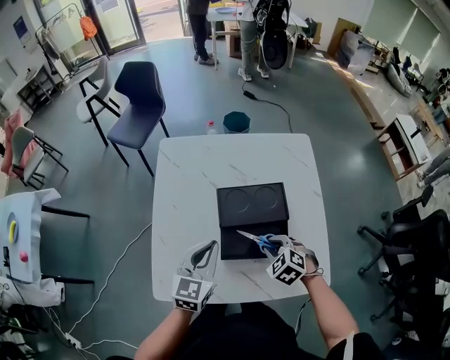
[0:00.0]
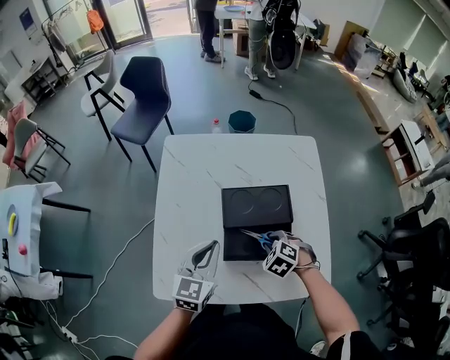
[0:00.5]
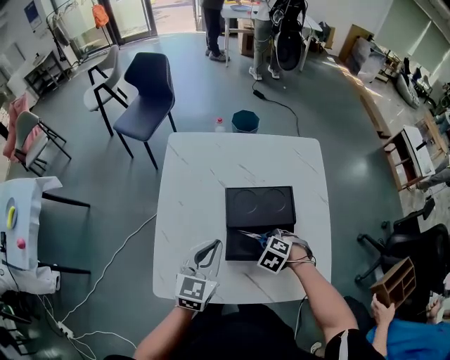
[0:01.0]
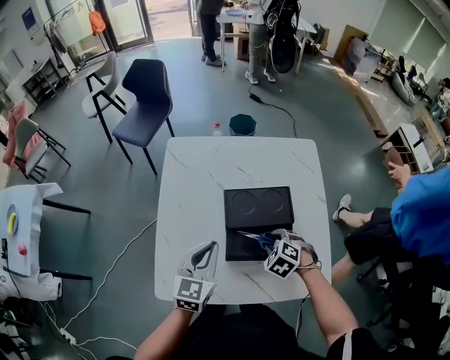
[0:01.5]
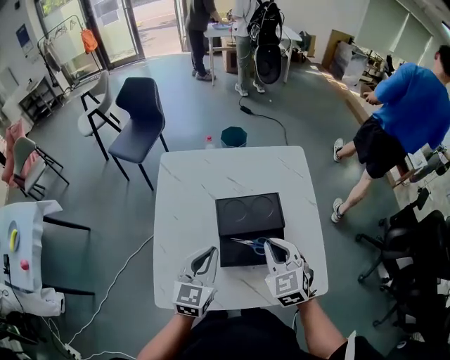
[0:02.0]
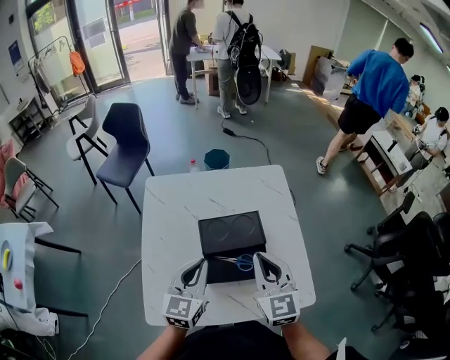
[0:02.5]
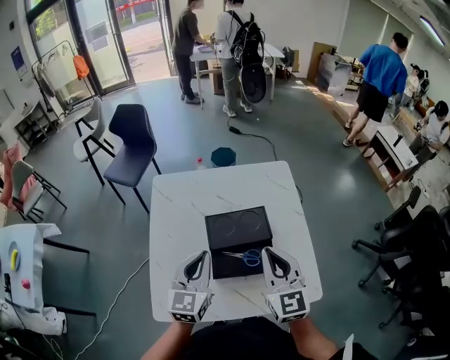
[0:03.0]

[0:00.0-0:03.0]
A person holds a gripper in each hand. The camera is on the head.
0:01.5 to 0:03.0: The left gripper heads upward, covering some 10 cm, while the right gripper shifts approximately 25 cm upward, angles its fingers upward, by some 60 degrees, and closes.

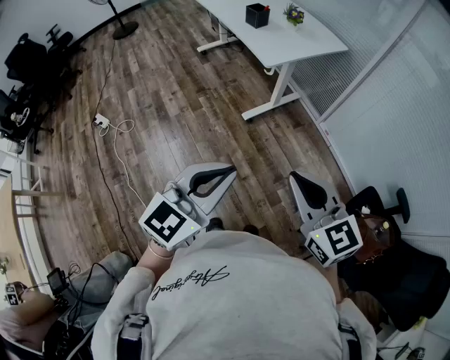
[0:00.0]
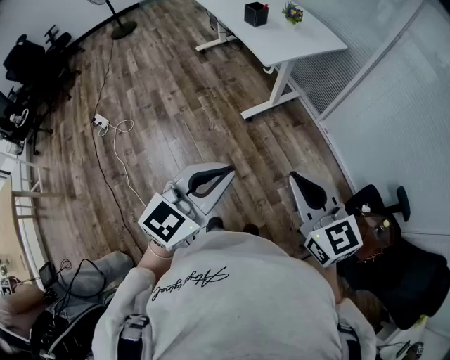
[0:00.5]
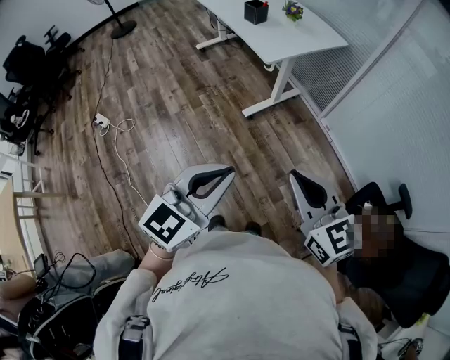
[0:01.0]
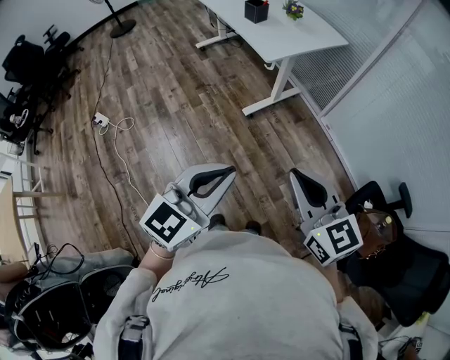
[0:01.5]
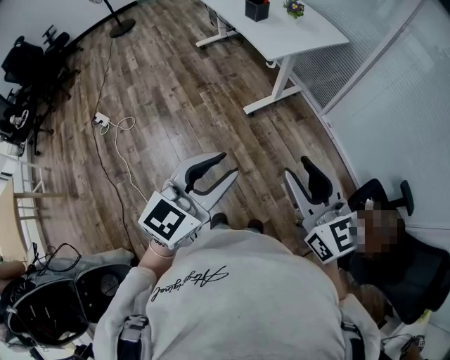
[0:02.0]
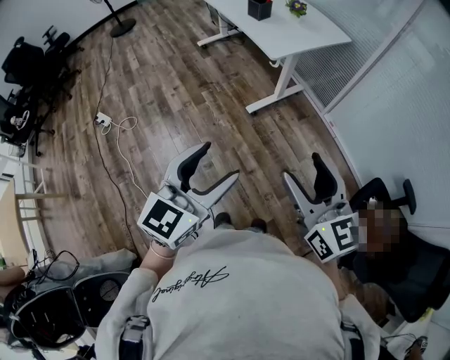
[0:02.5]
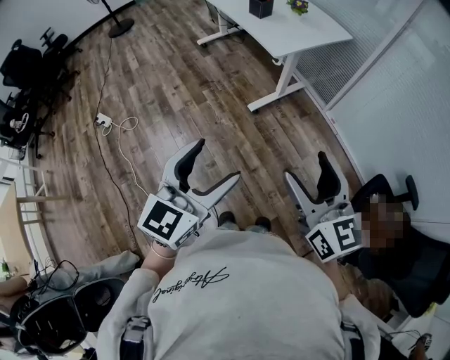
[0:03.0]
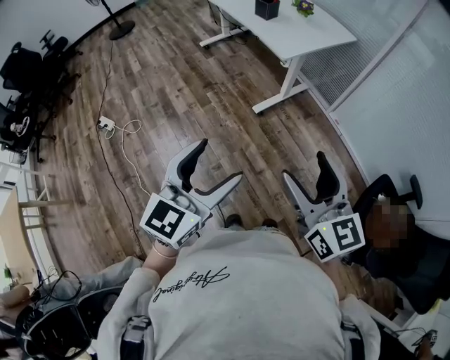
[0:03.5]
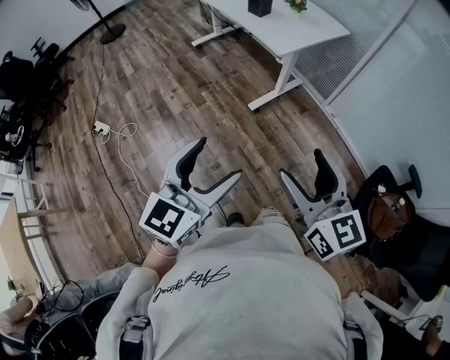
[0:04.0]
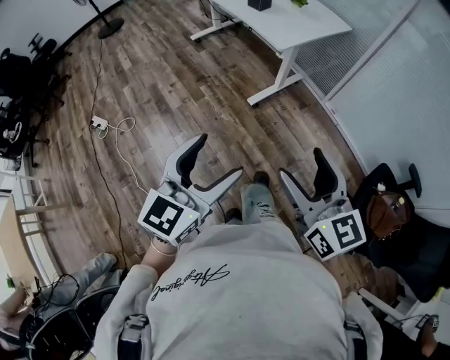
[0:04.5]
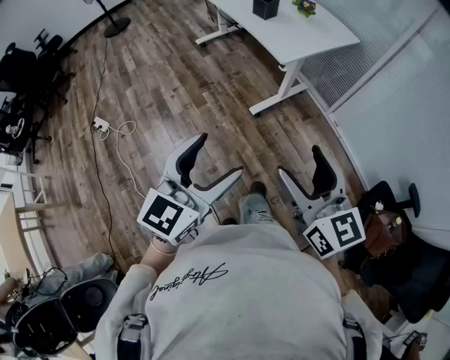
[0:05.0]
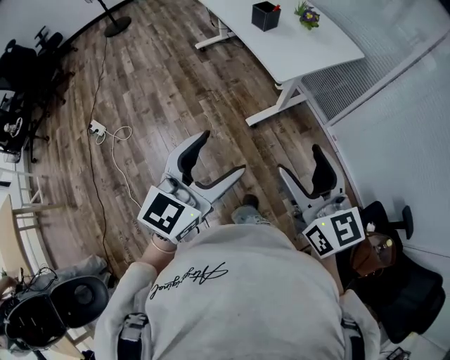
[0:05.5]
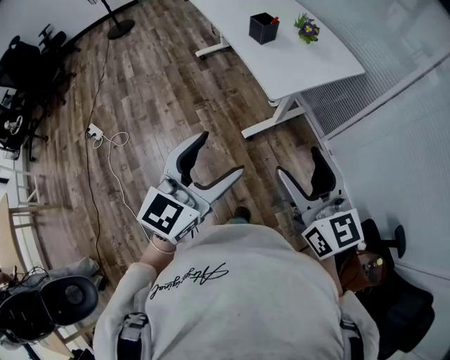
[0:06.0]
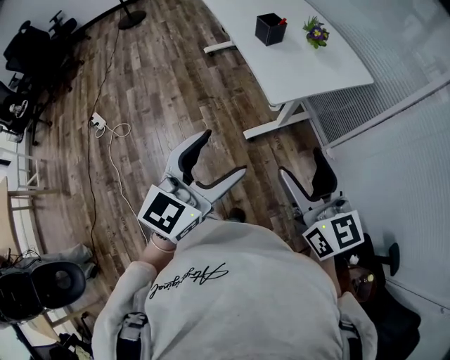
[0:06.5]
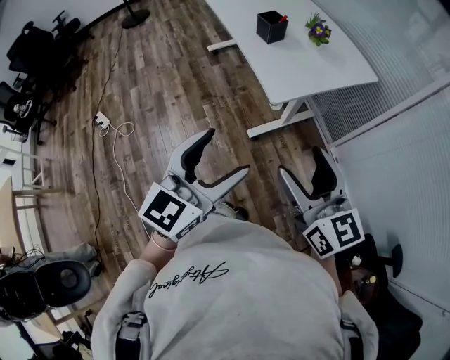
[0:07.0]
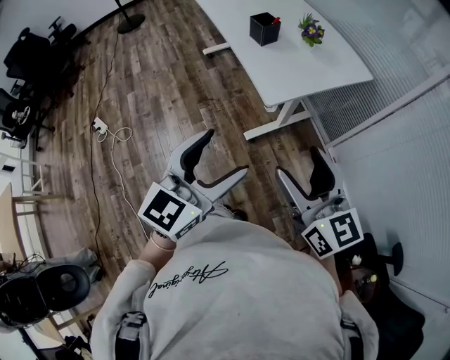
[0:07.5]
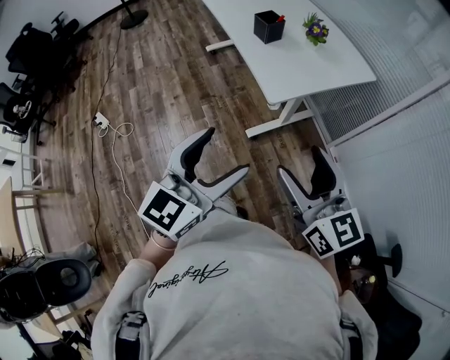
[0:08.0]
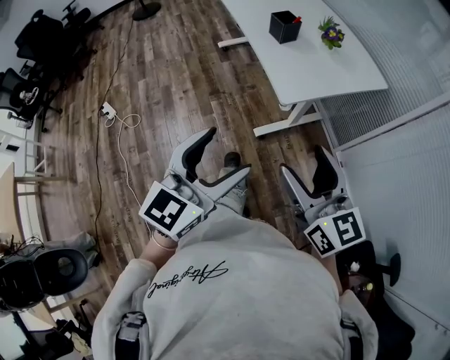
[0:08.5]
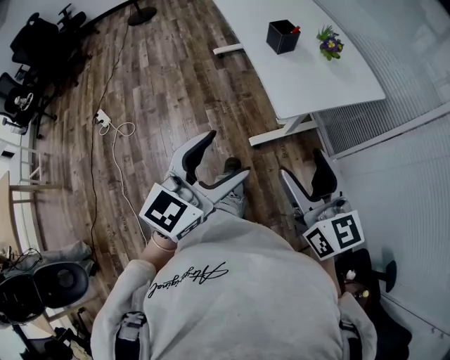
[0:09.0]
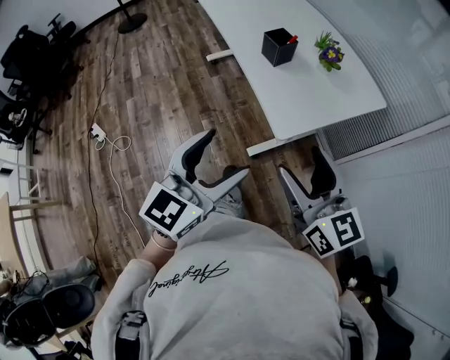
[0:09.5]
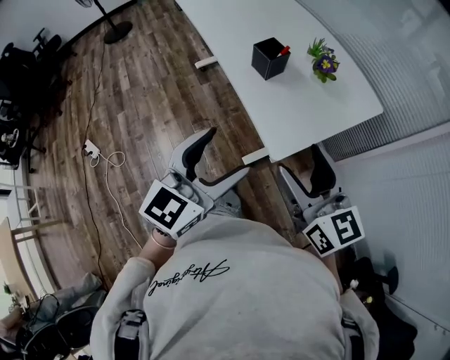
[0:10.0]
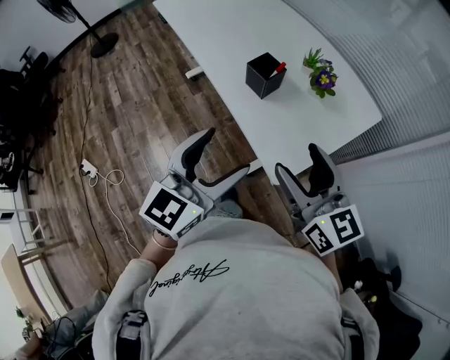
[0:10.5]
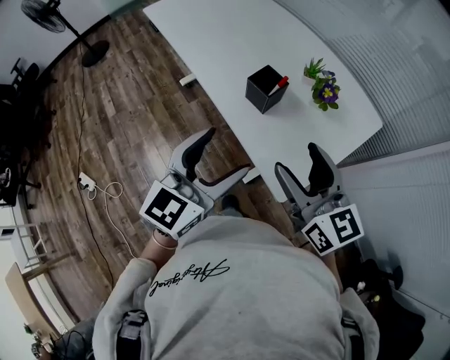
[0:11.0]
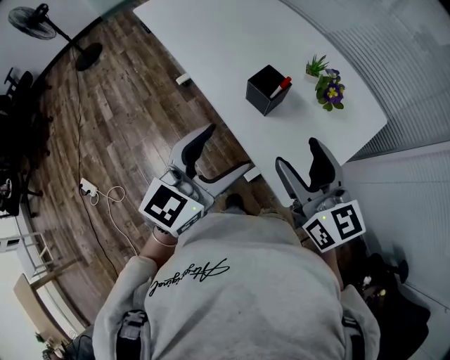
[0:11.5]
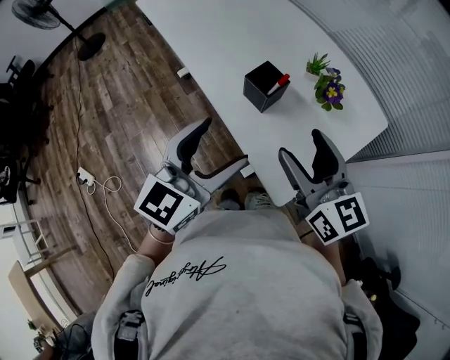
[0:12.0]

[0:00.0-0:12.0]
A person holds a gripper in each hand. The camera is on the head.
0:00.0 to 0:02.0: The right gripper opens its fingers.
0:02.0 to 0:04.0: The grippers both shift to the left by approximately 10 cm. The left gripper opens up, while the right gripper opens its fingers.
0:04.0 to 0:06.0: Both grippers travel together forward, approximately 25 cm.
0:06.0 to 0:08.0: The right gripper shifts by approximately 5 cm, while the left gripper ends up approximately 5 cm from where it was.
0:08.0 to 0:10.0: The grippers both shift forward by approximately 20 cm.
0:10.0 to 0:12.0: The grippers both shift forward by about 20 cm.

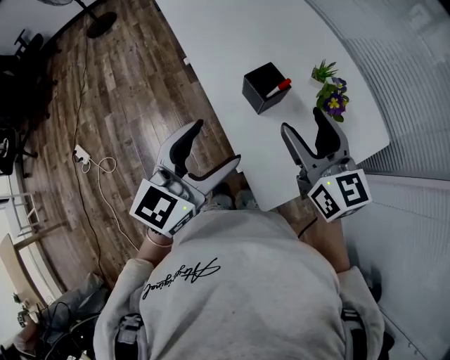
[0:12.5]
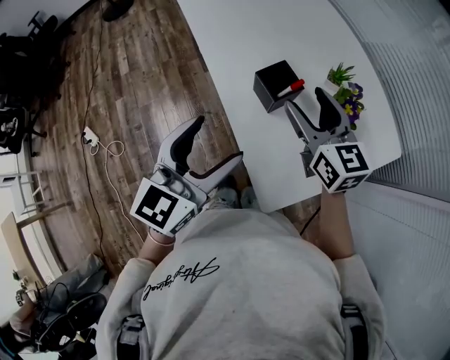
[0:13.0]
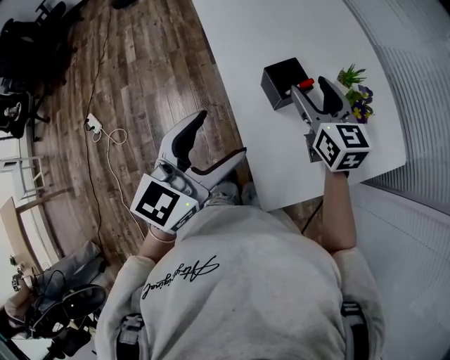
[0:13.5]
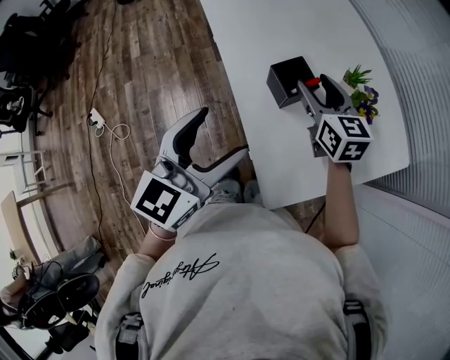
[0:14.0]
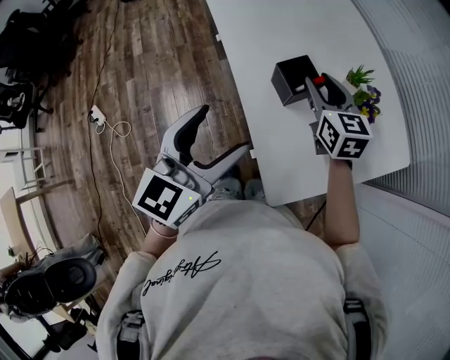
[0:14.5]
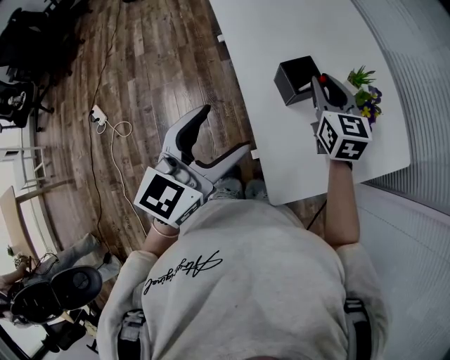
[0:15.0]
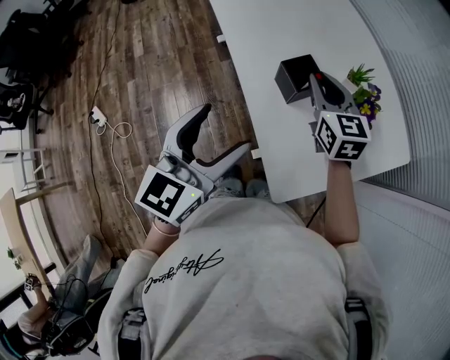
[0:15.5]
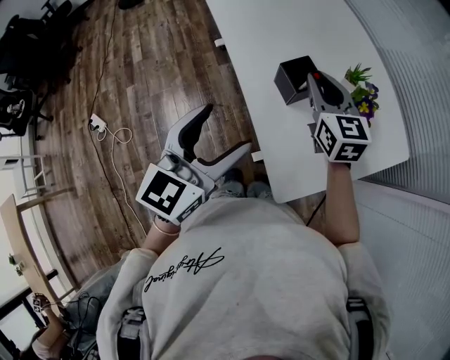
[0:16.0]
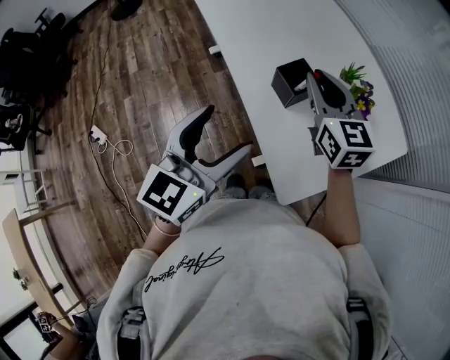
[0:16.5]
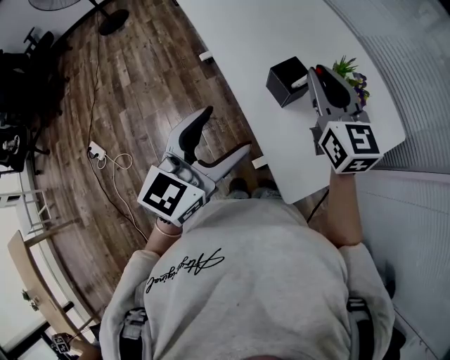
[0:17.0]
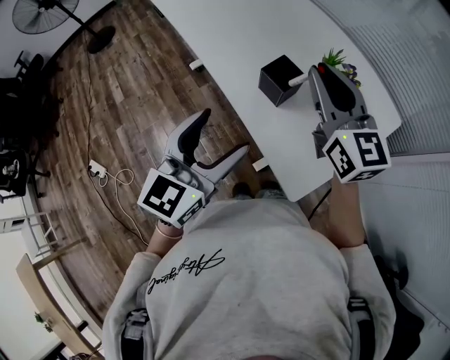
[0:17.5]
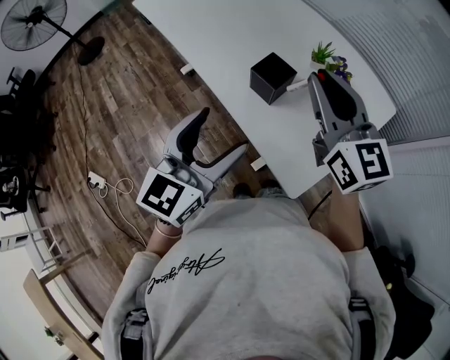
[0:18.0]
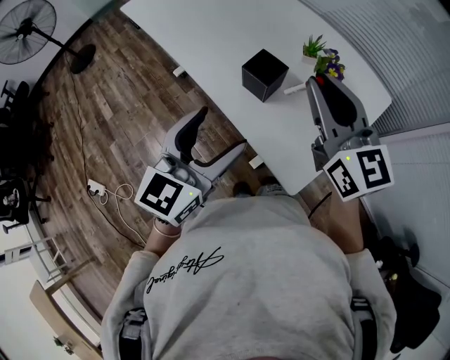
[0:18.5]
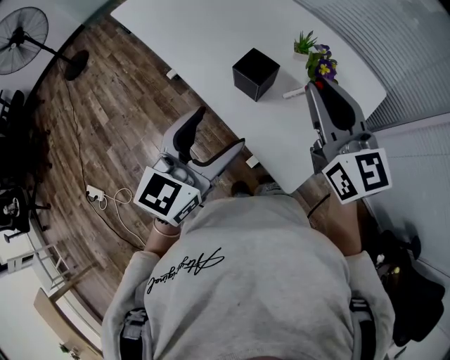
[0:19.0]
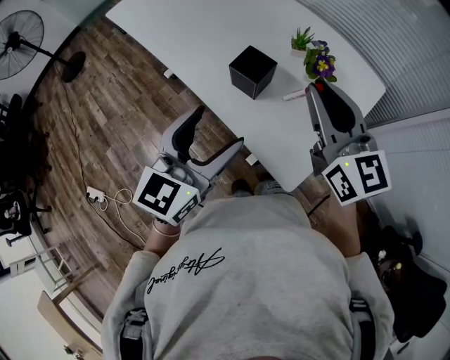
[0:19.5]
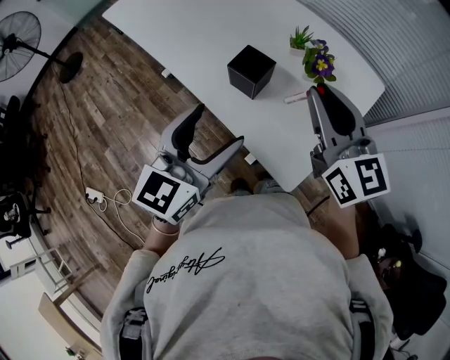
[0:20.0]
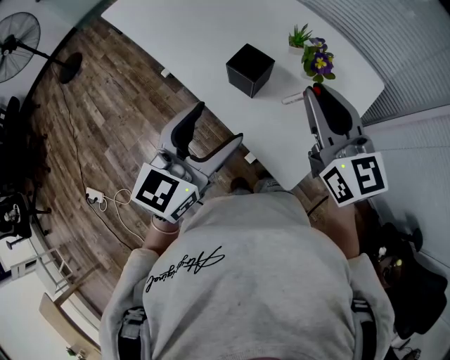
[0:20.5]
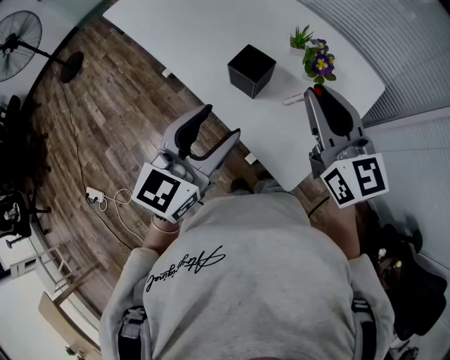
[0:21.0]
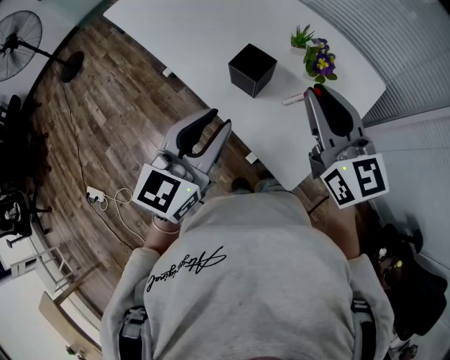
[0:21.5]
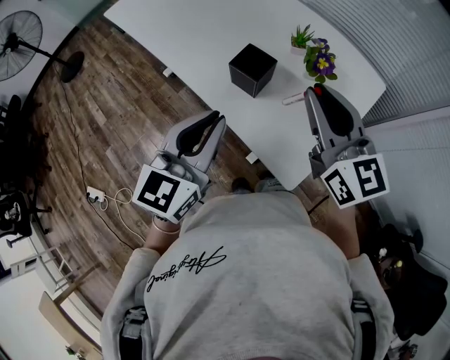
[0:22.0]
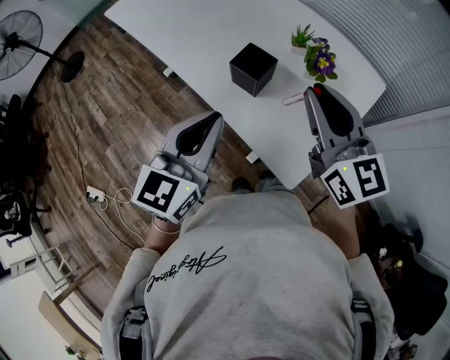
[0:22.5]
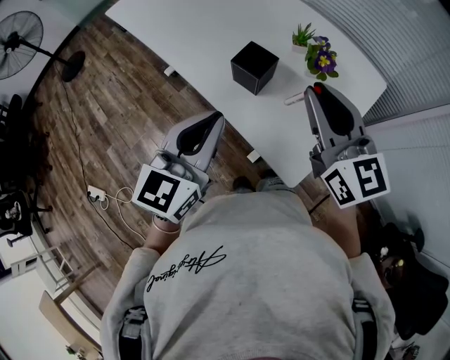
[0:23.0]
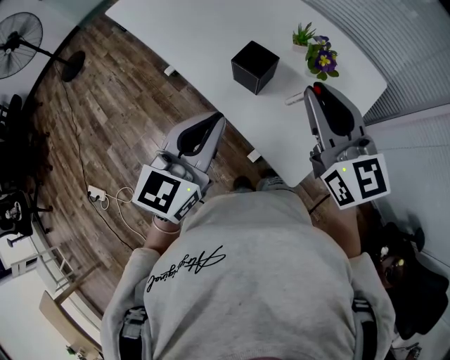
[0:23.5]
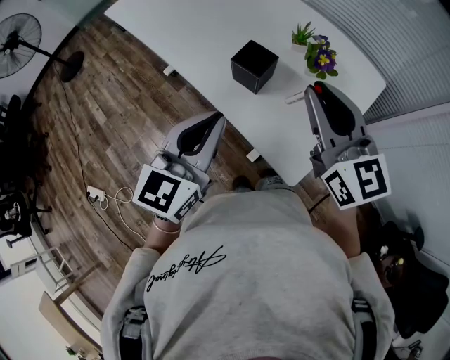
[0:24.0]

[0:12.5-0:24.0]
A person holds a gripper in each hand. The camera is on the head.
0:12.5 to 0:14.5: The right gripper is displaced forward and downward by some 15 cm, and closes.
0:14.5 to 0:16.5: The right gripper goes approximately 5 cm upward.
0:16.5 to 0:18.5: The right gripper goes approximately 10 cm backward and upward.
0:18.5 to 0:20.0: The grippers make only small movements.
0:20.0 to 0:22.0: The left gripper closes.
0:22.0 to 0:24.0: The grippers move only a little.

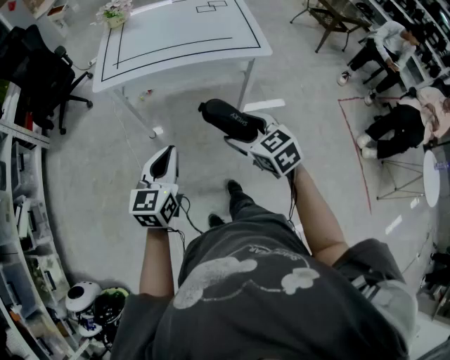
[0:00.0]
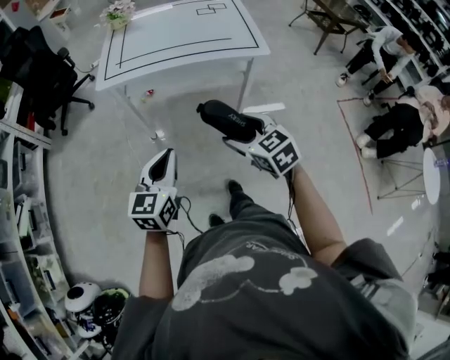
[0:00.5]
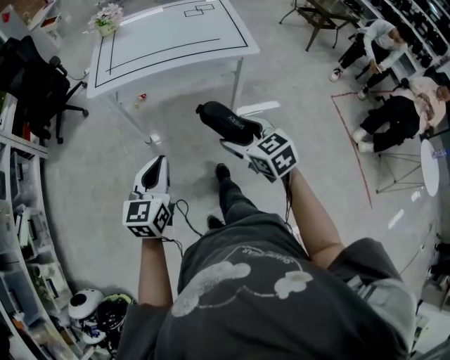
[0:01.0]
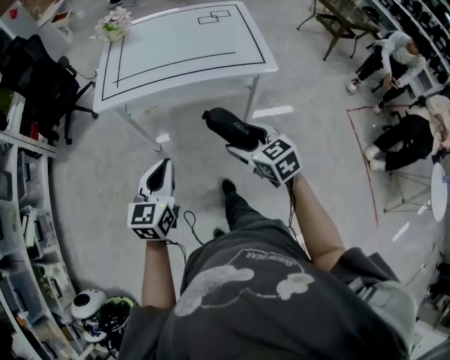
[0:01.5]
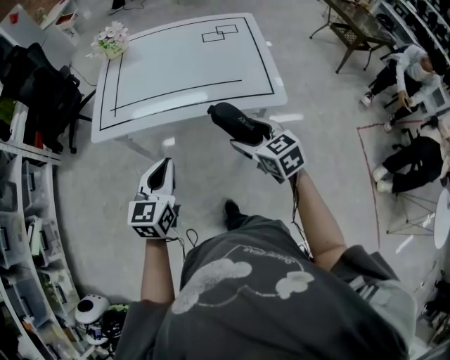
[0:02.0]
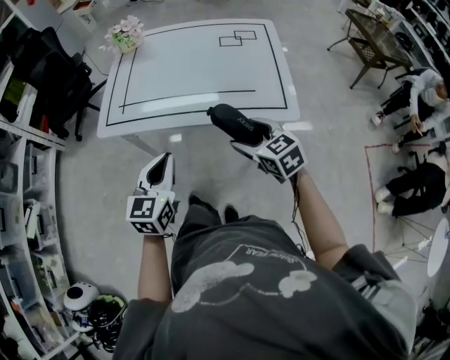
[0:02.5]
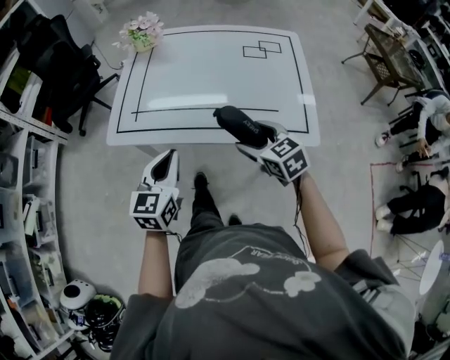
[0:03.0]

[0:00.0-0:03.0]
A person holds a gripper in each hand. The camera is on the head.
0:00.0 to 0:01.5: Both grippers travel together forward, roughly 5 cm.
0:01.5 to 0:03.0: The grippers both shift forward by some 25 cm.
